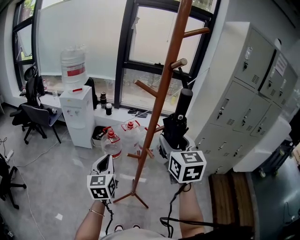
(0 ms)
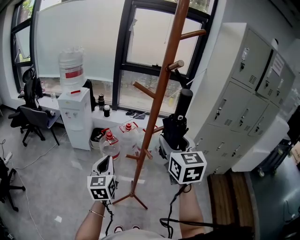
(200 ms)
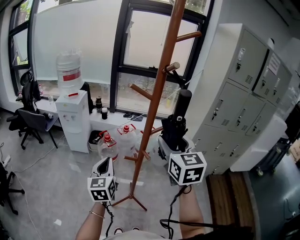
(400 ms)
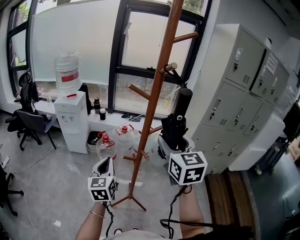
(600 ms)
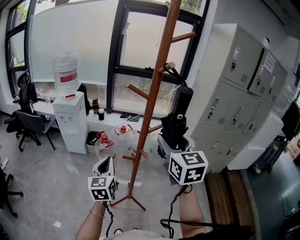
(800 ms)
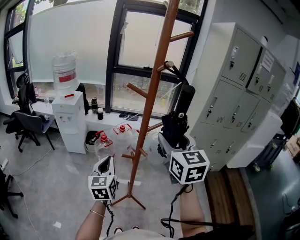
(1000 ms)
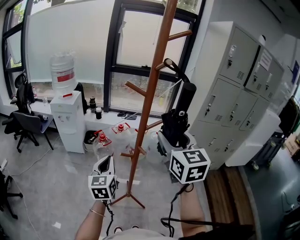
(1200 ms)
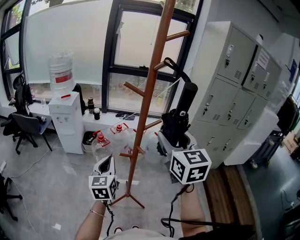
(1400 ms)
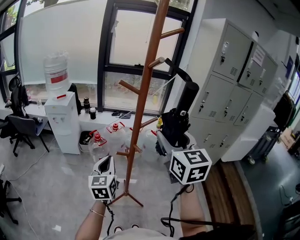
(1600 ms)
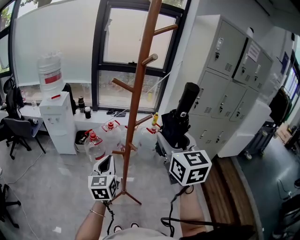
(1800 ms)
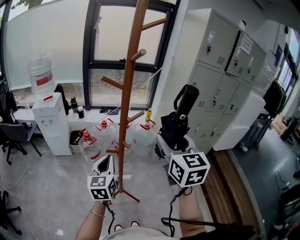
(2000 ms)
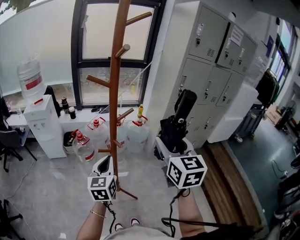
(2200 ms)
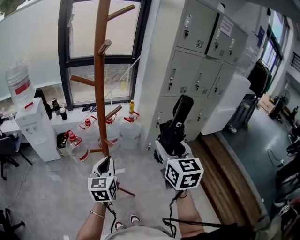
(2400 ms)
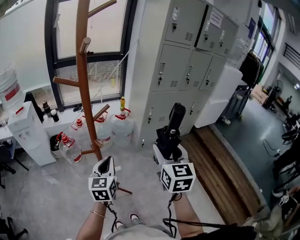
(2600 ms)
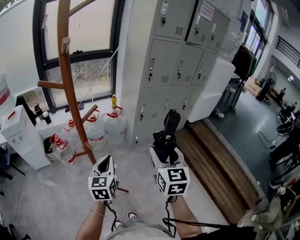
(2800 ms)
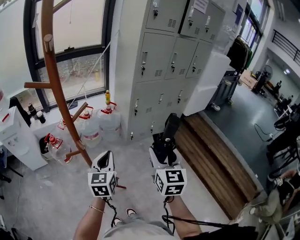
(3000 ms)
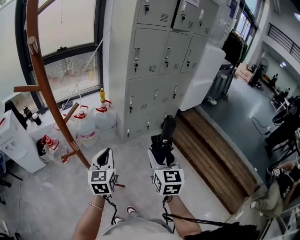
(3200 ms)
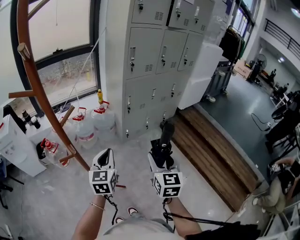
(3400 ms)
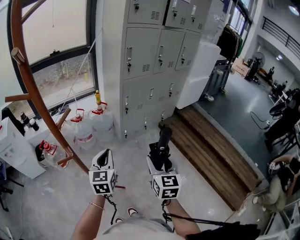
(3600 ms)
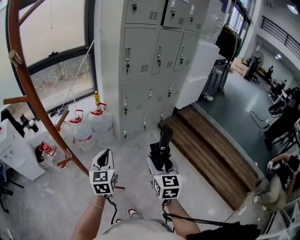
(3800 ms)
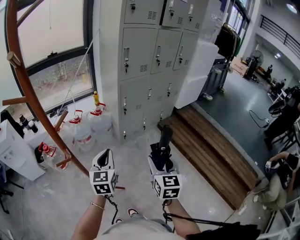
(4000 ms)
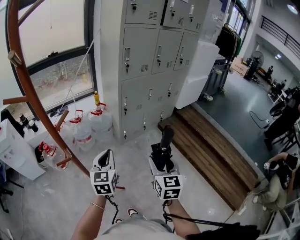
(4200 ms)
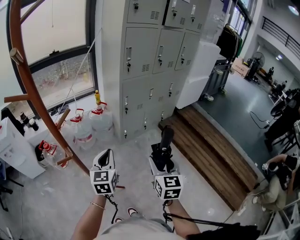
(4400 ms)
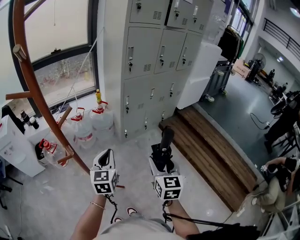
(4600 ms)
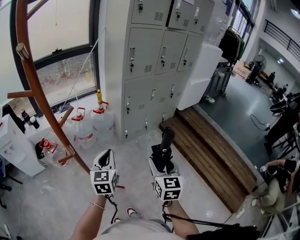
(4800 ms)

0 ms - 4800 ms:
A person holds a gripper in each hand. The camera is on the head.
0 ms - 1600 ms: The left gripper shifts by approximately 5 cm, while the right gripper shifts roughly 5 cm backward.
1600 ms - 3200 ms: The left gripper shifts by about 25 cm, and rotates about 30 degrees. Meanwhile the right gripper shifts by about 30 cm, and swivels approximately 40 degrees.
3200 ms - 4800 ms: The right gripper moves roughly 5 cm.

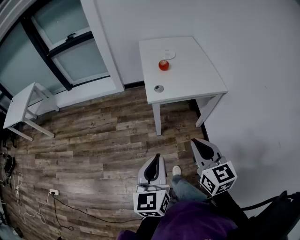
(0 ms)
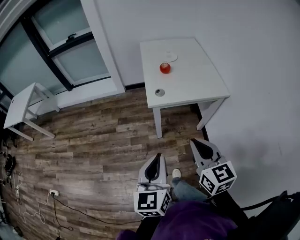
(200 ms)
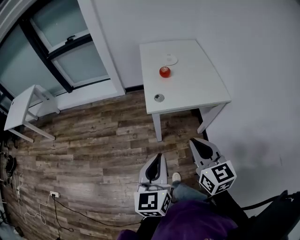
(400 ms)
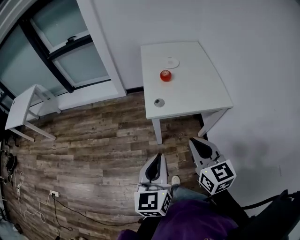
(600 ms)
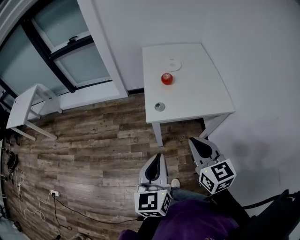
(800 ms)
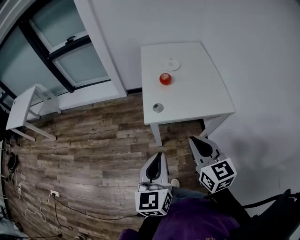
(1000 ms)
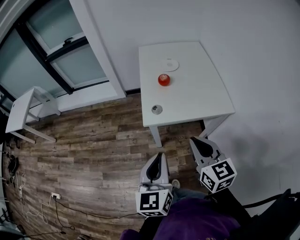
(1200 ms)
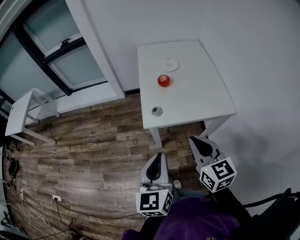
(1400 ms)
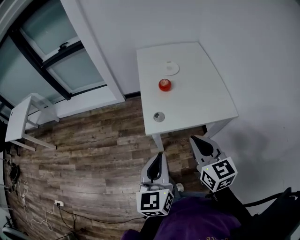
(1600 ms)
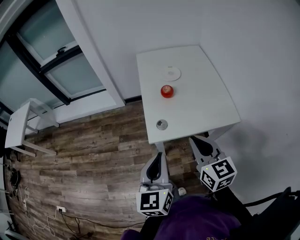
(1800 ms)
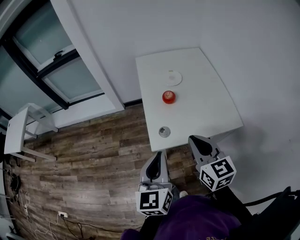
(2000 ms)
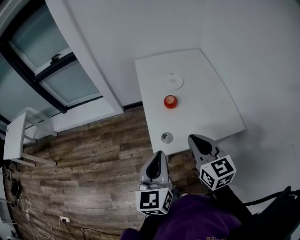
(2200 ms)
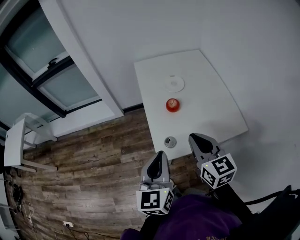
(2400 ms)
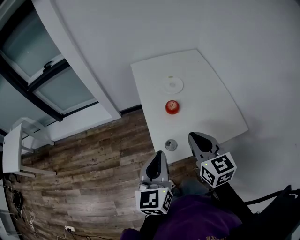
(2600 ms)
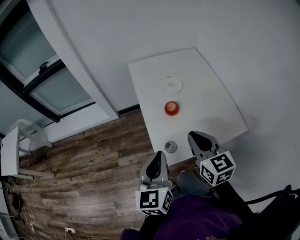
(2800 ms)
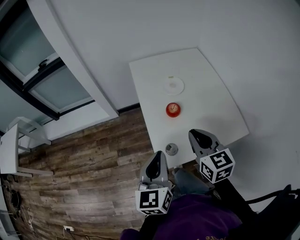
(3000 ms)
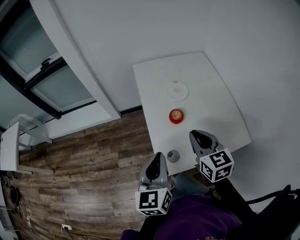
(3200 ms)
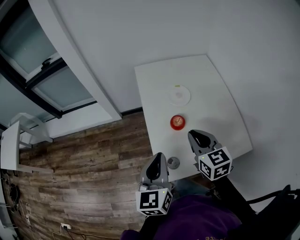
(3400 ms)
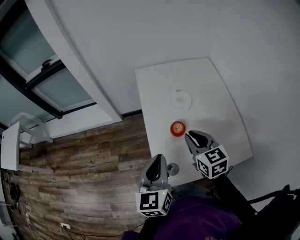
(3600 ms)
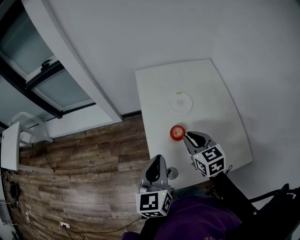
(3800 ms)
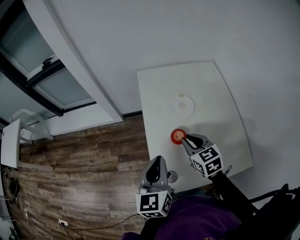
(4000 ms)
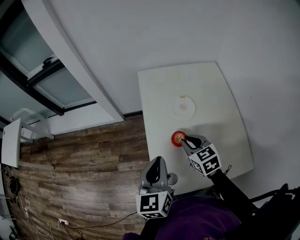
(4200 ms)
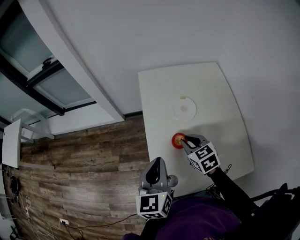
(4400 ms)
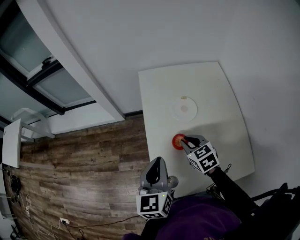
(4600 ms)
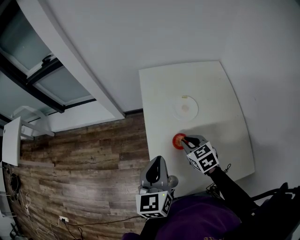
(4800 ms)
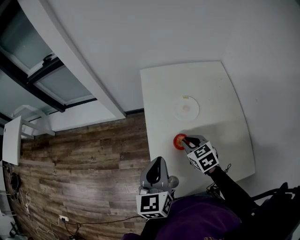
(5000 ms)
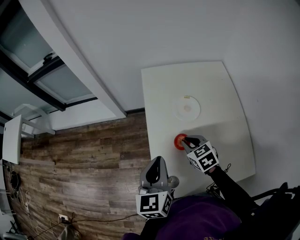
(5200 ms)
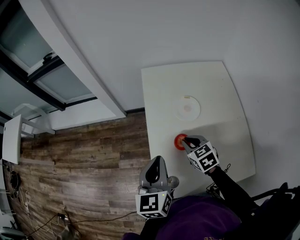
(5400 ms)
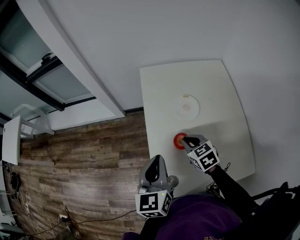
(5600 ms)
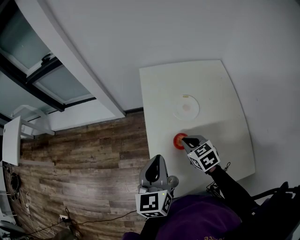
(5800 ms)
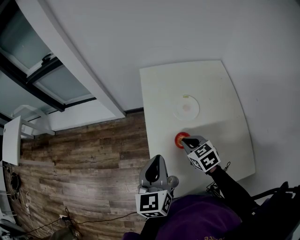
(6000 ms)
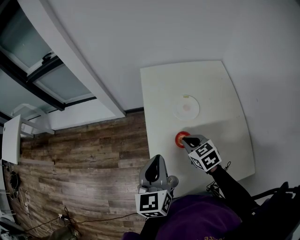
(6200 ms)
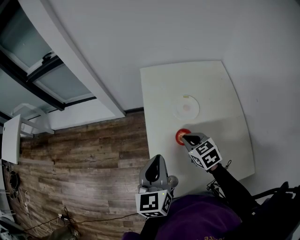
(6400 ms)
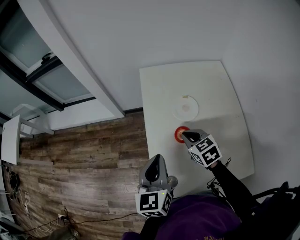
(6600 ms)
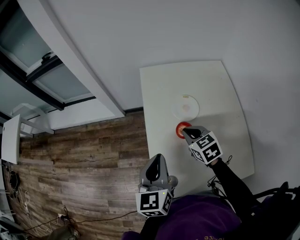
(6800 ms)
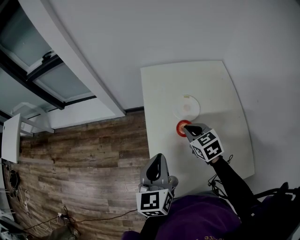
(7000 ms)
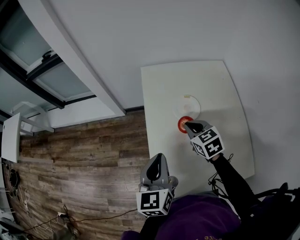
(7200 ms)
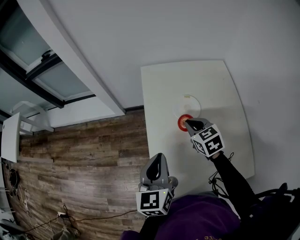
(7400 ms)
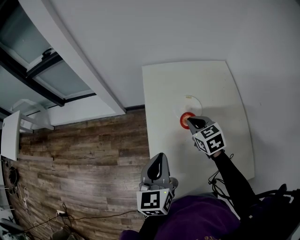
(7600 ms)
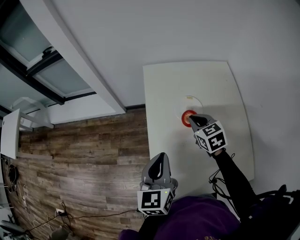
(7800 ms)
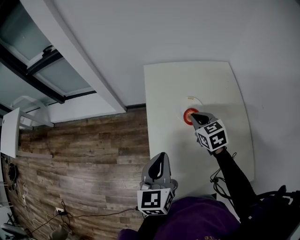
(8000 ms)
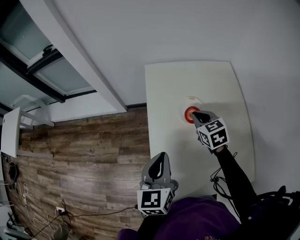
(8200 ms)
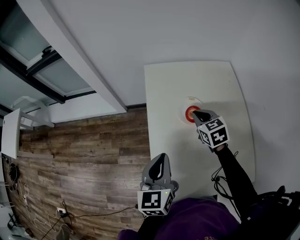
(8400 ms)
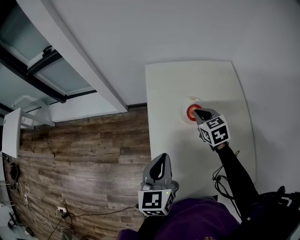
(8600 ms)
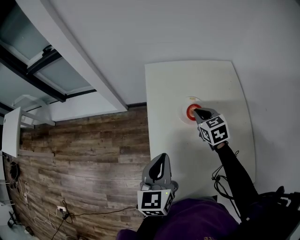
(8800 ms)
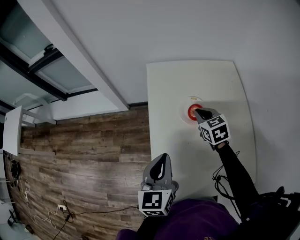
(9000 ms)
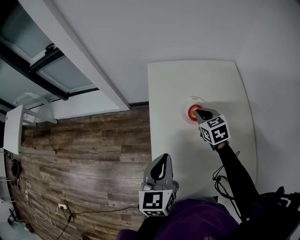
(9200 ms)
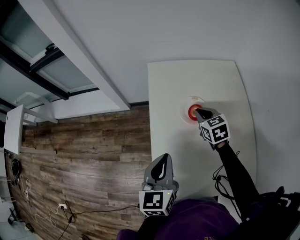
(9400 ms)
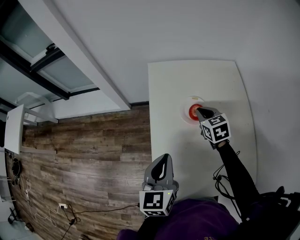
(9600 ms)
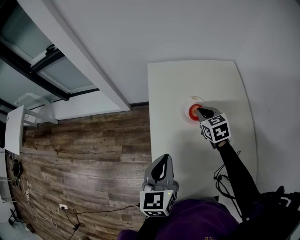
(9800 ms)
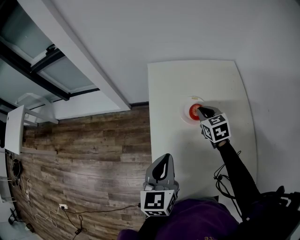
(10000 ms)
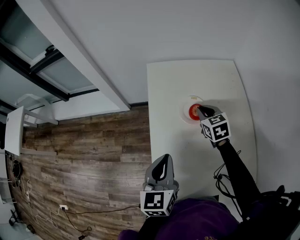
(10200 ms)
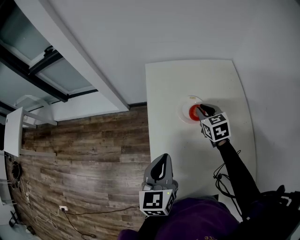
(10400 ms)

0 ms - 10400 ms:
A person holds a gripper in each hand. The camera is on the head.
0 ms - 1400 ms: The right gripper is displaced forward by roughly 20 cm. Meanwhile the left gripper travels forward and to the right by roughly 20 cm.
1400 ms - 3000 ms: The two grippers go about 25 cm forward.
3000 ms - 4400 ms: The right gripper shifts some 20 cm forward and downward, and swivels about 30 degrees. The left gripper moves forward, some 15 cm.
4400 ms - 6000 ms: The grippers make only small movements.
6000 ms - 7400 ms: The right gripper travels forward by roughly 5 cm.
7400 ms - 9000 ms: The right gripper is displaced forward by some 5 cm.
9000 ms - 10400 ms: There are only small adjustments of the grippers.

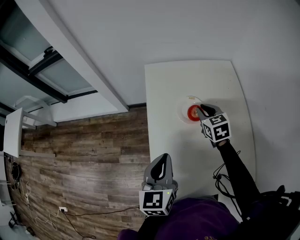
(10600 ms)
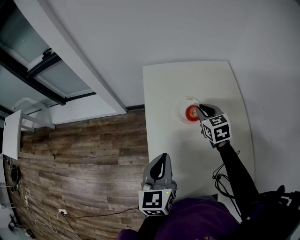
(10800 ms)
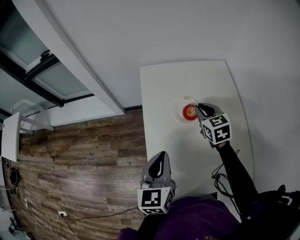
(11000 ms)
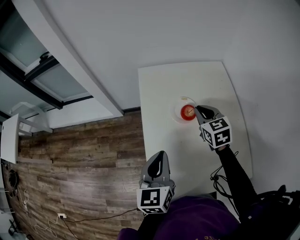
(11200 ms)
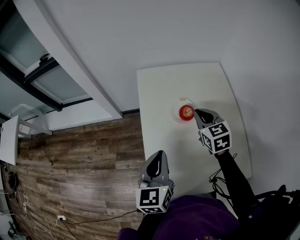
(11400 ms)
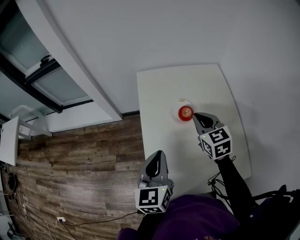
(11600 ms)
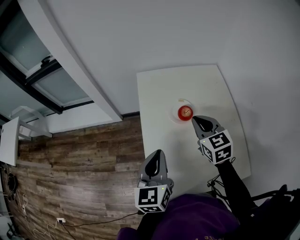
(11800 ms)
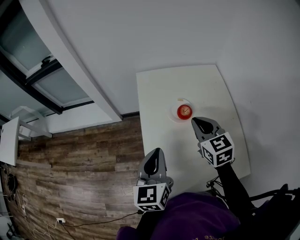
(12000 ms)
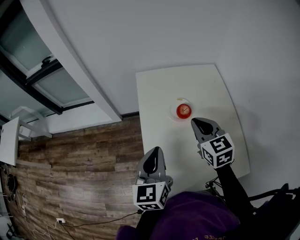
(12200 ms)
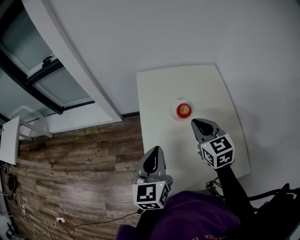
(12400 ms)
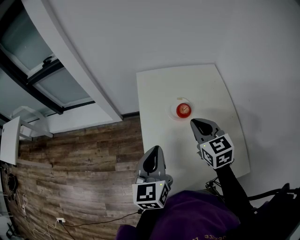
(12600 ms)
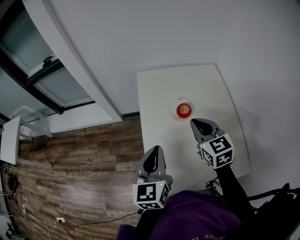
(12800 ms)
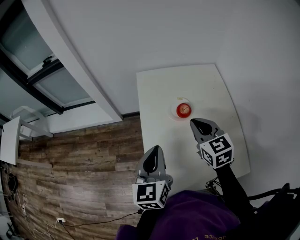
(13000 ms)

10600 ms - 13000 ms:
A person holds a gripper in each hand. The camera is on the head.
10600 ms - 11800 ms: The right gripper shifts about 15 cm upward and backward.
11800 ms - 13000 ms: There are only small adjustments of the grippers.

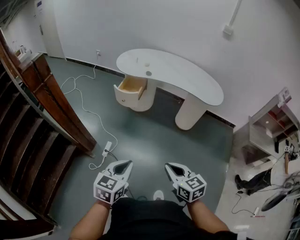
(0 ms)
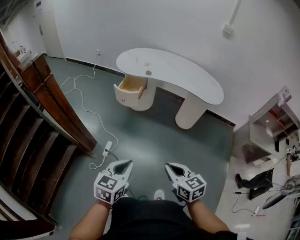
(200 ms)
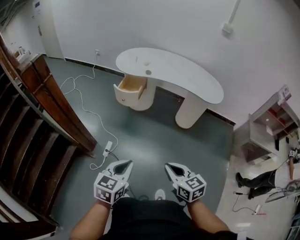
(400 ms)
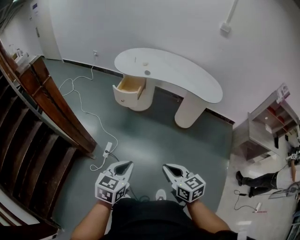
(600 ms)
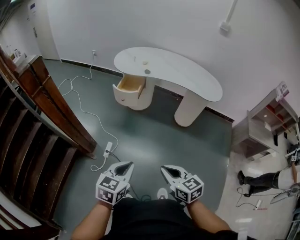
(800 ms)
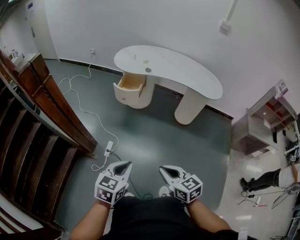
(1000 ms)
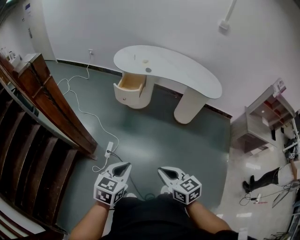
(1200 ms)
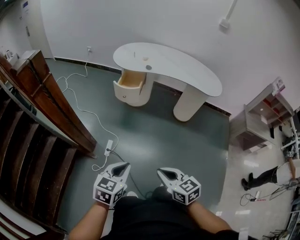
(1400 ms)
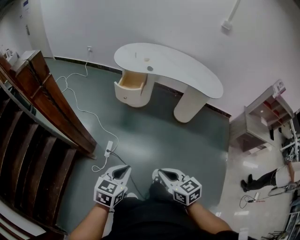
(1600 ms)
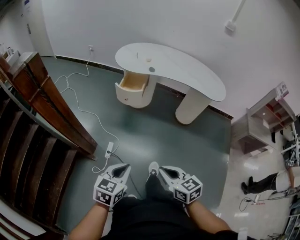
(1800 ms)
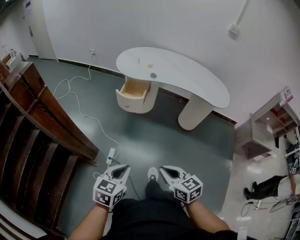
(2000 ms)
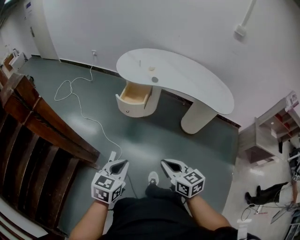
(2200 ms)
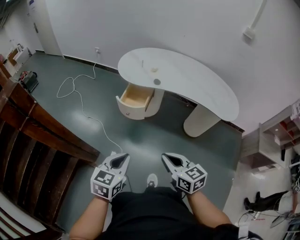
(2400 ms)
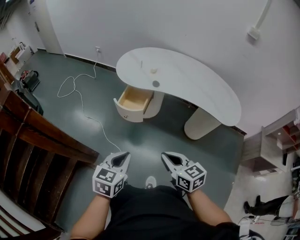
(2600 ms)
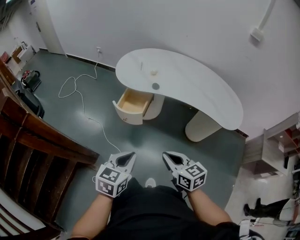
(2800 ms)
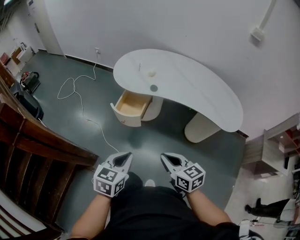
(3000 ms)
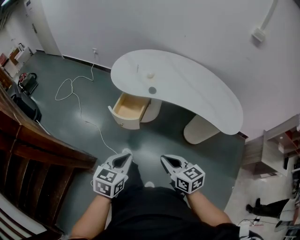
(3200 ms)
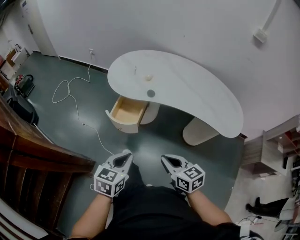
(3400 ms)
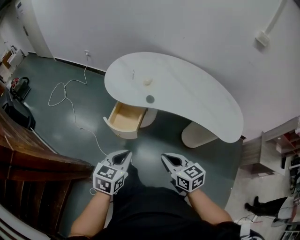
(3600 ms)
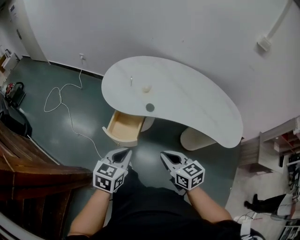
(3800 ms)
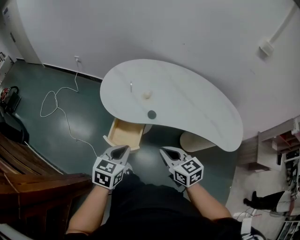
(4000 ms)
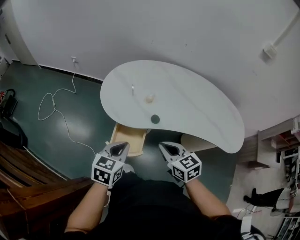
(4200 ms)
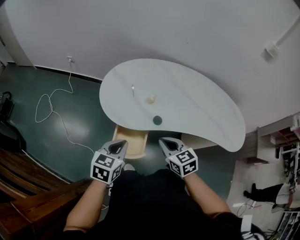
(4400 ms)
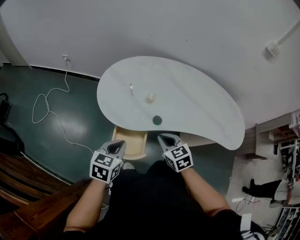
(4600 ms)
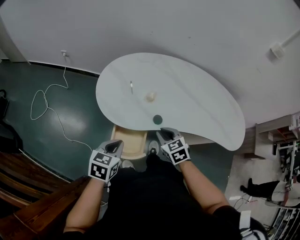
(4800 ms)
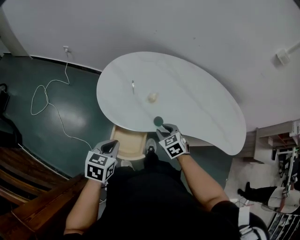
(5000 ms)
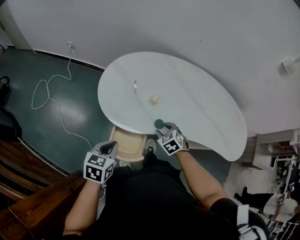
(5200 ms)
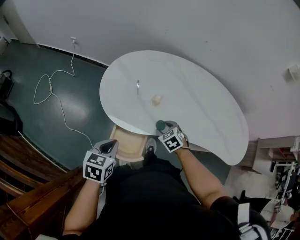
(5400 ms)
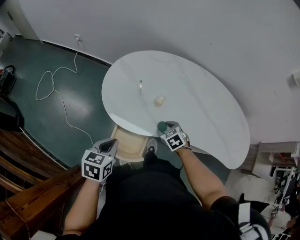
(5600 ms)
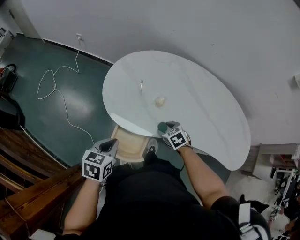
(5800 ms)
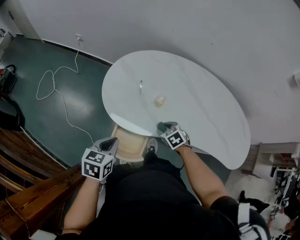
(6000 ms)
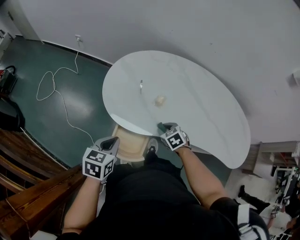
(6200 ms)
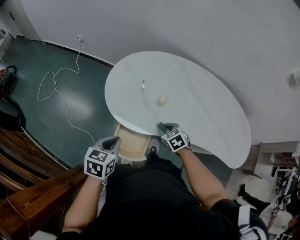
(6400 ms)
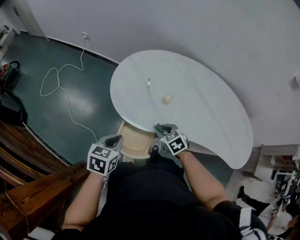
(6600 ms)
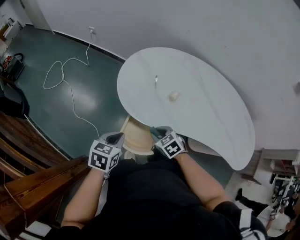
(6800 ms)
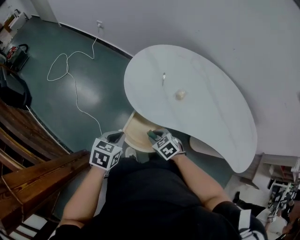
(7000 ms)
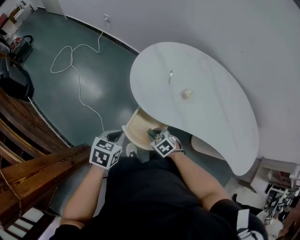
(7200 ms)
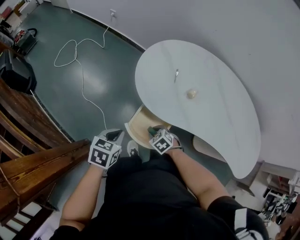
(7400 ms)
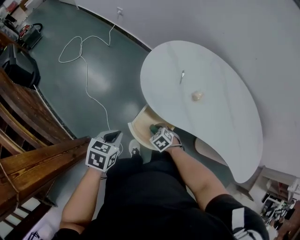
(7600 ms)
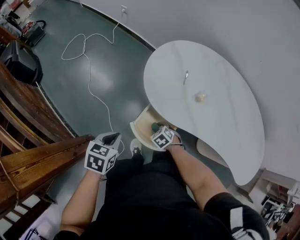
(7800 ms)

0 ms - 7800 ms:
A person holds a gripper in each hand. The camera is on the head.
0 ms - 1600 ms: The two grippers go some 15 cm to the left.
1600 ms - 3200 ms: The two grippers go about 35 cm forward.
3200 ms - 4600 ms: The grippers both shift forward by approximately 35 cm. The right gripper rotates approximately 30 degrees.
4600 ms - 6200 ms: The left gripper changes place by some 5 cm, while the right gripper is displaced downward and forward by roughly 15 cm, rotates some 30 degrees, and opens its fingers.
6200 ms - 7800 ms: The left gripper heads to the left, backward and downward, covering approximately 15 cm. The right gripper goes about 20 cm to the left and downward, and changes its angle by roughly 30 degrees.
